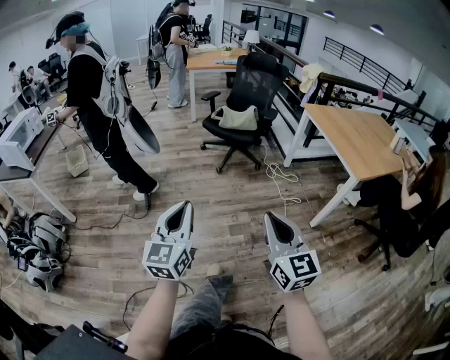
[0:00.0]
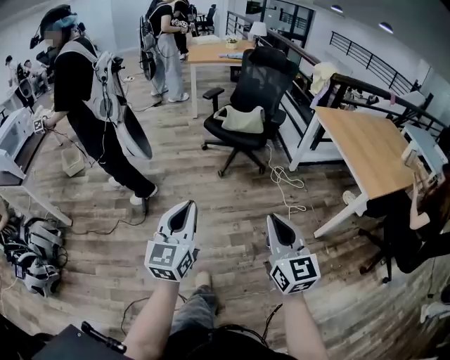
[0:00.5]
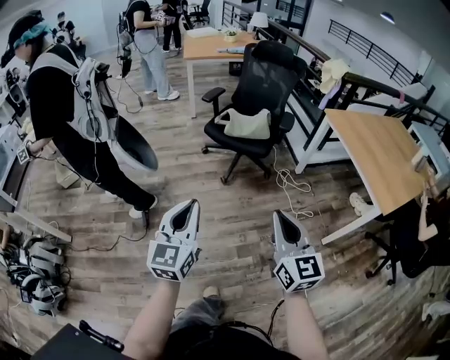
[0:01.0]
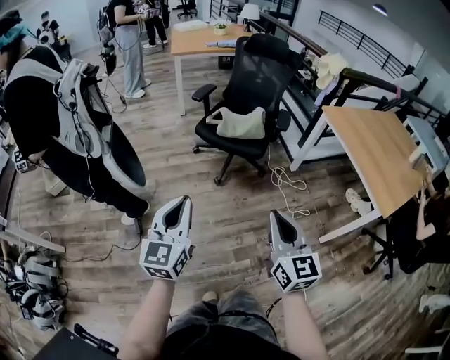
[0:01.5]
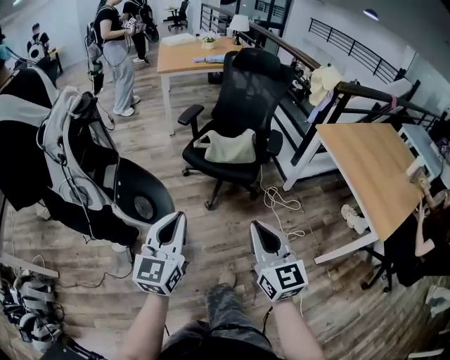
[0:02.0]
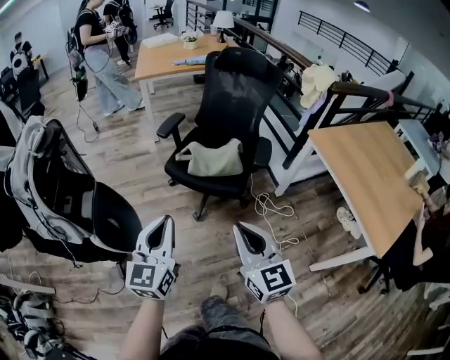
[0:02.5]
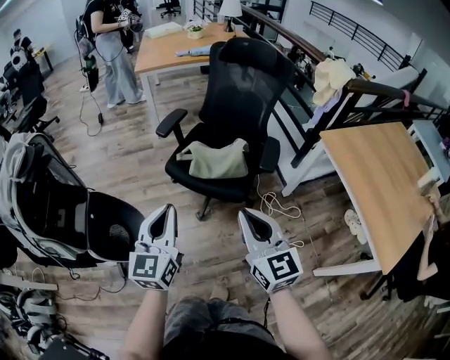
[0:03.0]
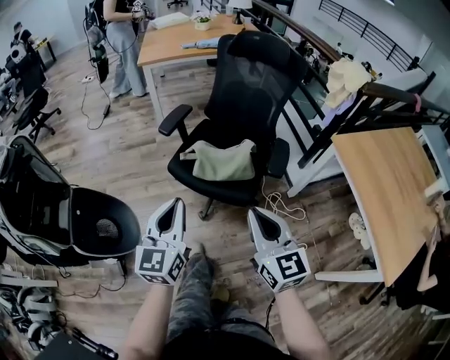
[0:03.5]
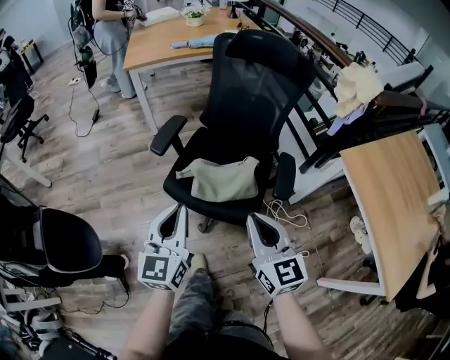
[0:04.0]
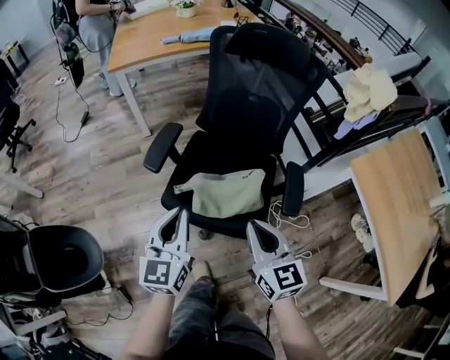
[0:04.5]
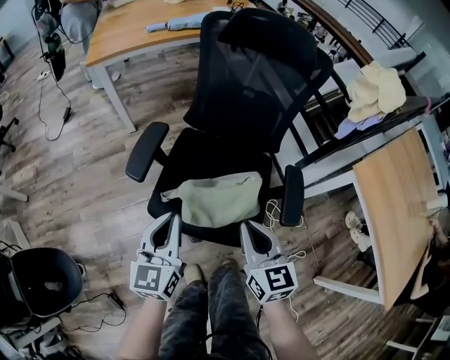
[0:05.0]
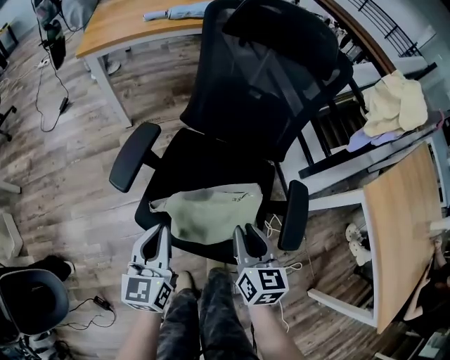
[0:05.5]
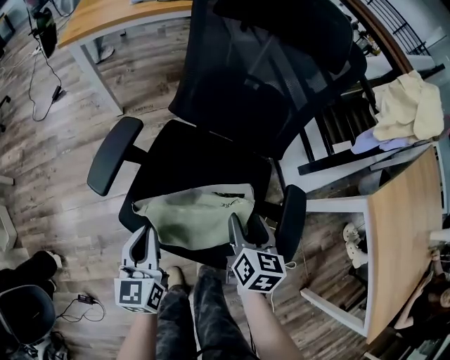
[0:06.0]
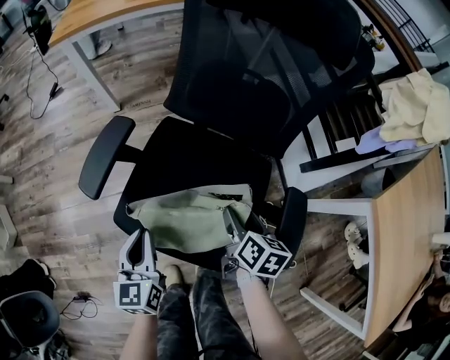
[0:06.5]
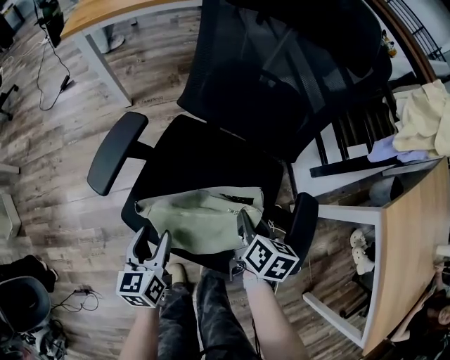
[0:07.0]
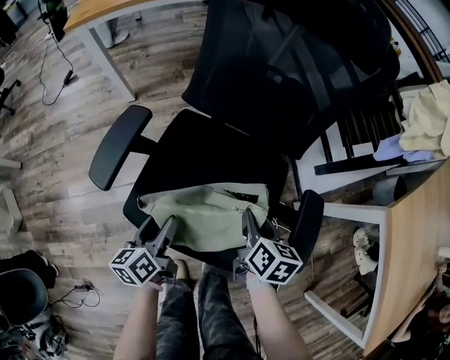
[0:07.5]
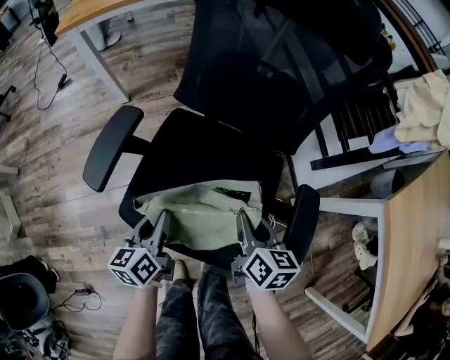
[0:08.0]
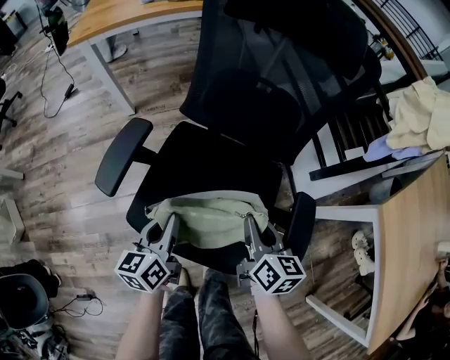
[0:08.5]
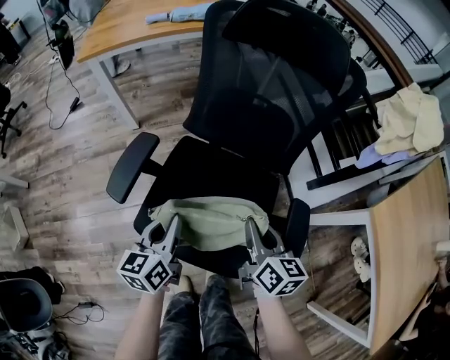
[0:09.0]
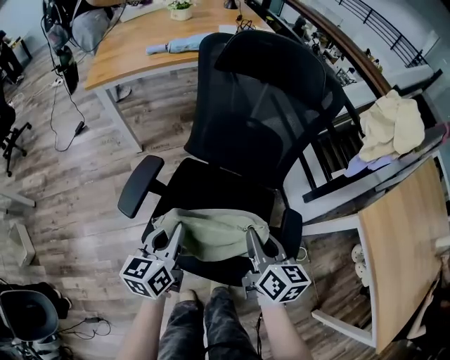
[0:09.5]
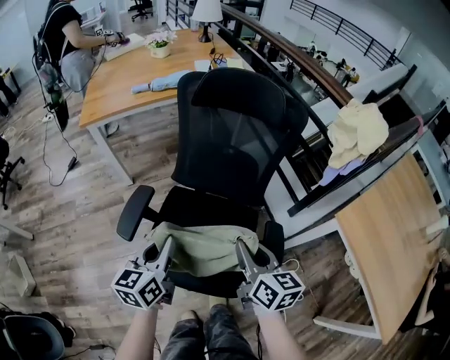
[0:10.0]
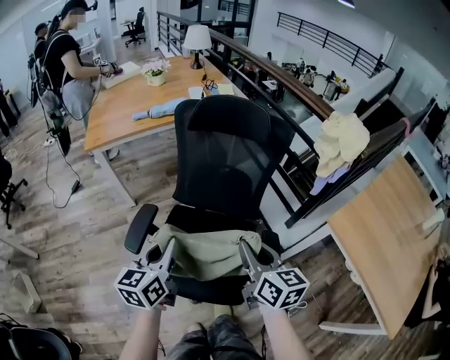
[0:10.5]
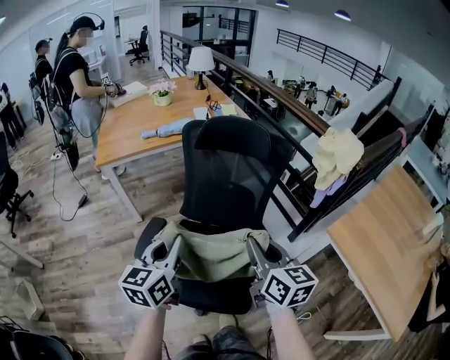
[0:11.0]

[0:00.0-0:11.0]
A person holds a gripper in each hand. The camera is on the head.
0:00.0 to 0:02.0: The two grippers travel together, forward, approximately 50 cm.
0:02.0 to 0:03.5: The grippers both shift forward by some 25 cm.
0:03.5 to 0:05.5: Both grippers move forward and downward, approximately 35 cm. The right gripper rotates about 30 degrees.
0:05.5 to 0:07.5: The right gripper goes approximately 15 cm downward, forward and to the right, turns by about 20 degrees, and opens, then closes once more. Meanwhile the left gripper moves downward, about 15 cm, changes its angle by approximately 30 degrees, and opens.
0:07.5 to 0:09.0: Both grippers move upward, approximately 10 cm. The left gripper turns by some 20 degrees, and closes up.
0:09.0 to 0:11.0: The grippers both shift upward by some 25 cm.

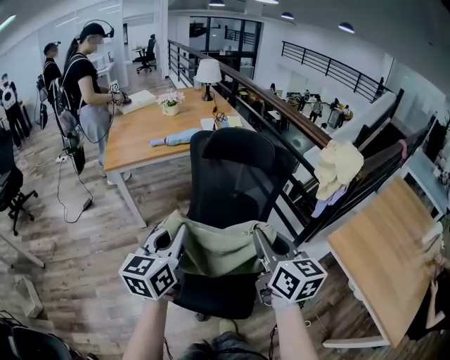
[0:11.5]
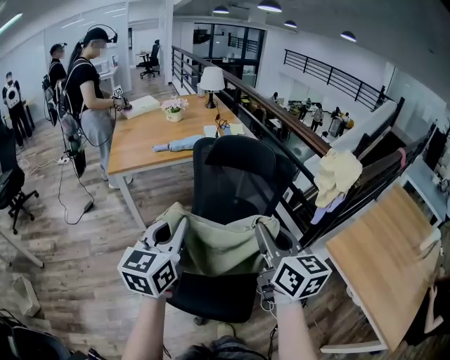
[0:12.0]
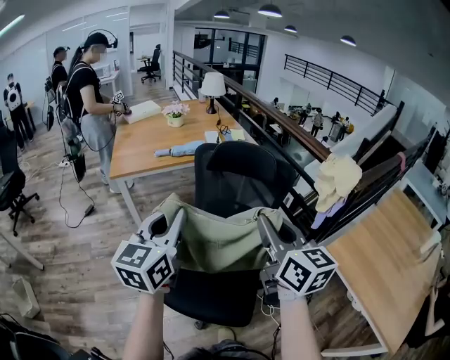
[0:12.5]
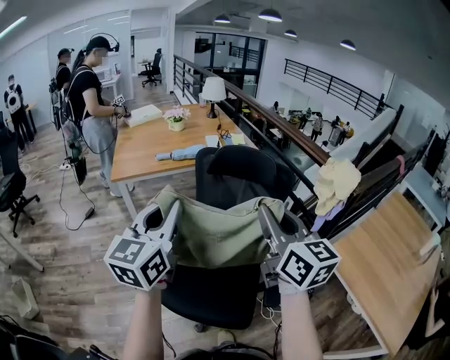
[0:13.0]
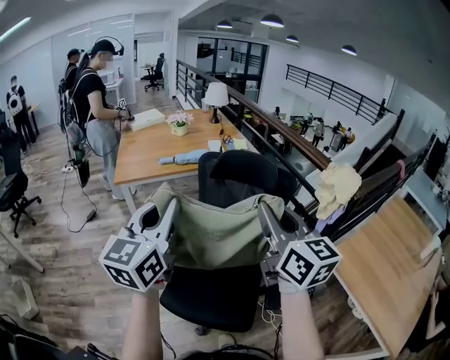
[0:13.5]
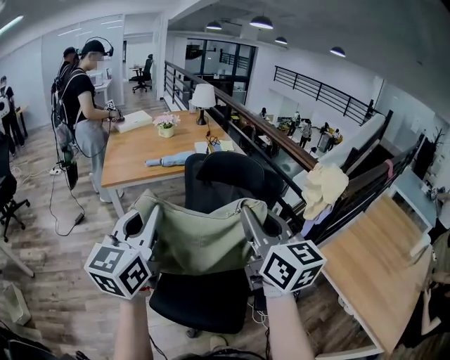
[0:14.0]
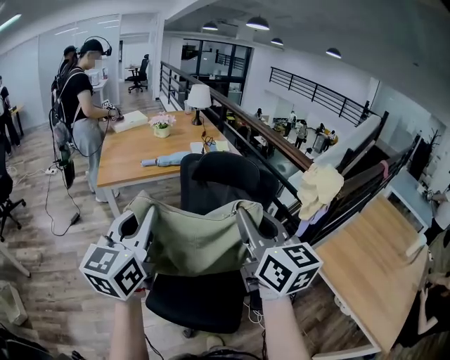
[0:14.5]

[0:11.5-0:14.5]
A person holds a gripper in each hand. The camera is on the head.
0:11.5 to 0:13.0: The grippers both shift upward by some 10 cm.
0:13.0 to 0:14.5: The grippers make only small movements.

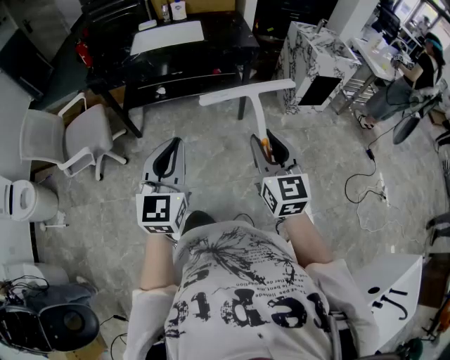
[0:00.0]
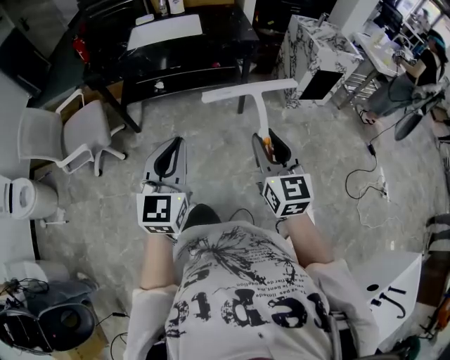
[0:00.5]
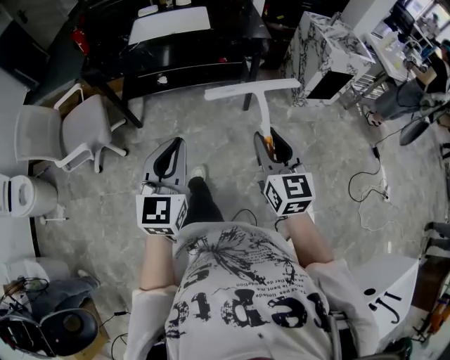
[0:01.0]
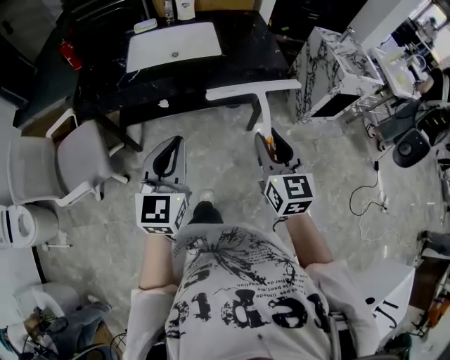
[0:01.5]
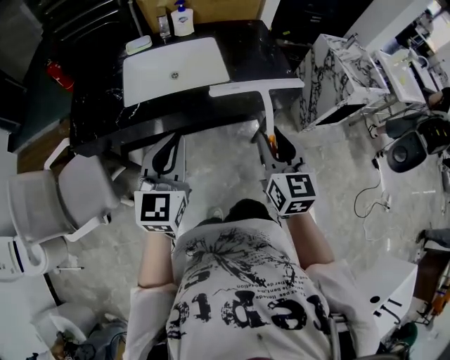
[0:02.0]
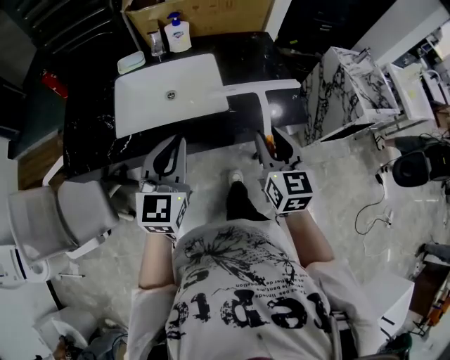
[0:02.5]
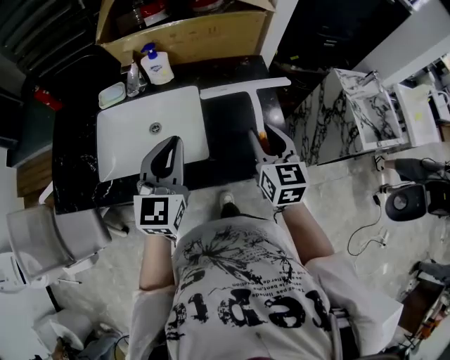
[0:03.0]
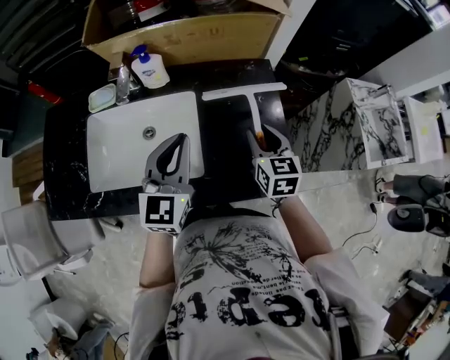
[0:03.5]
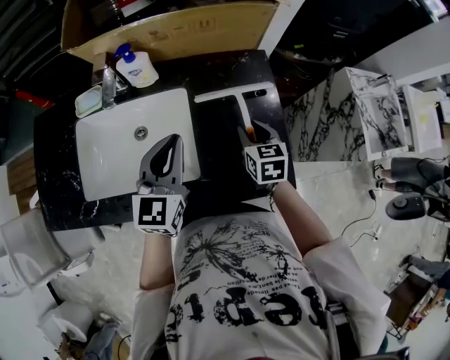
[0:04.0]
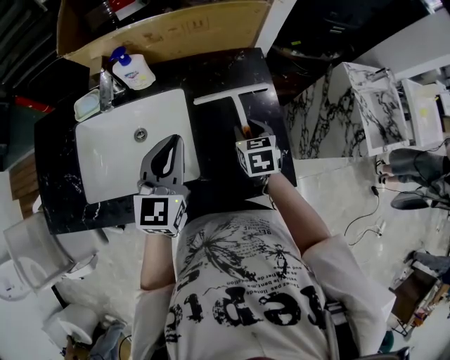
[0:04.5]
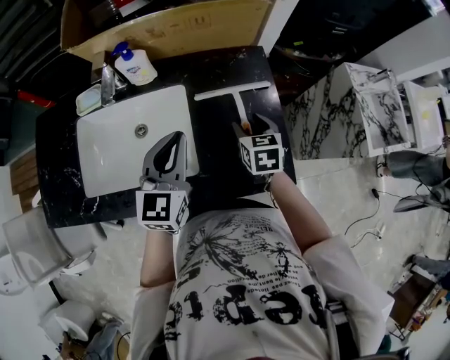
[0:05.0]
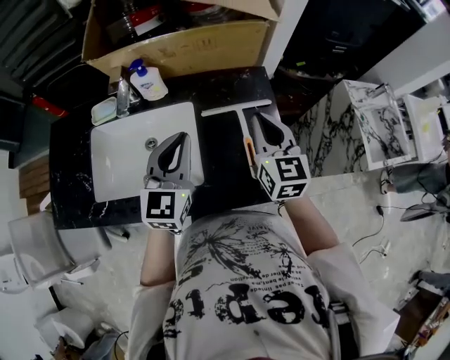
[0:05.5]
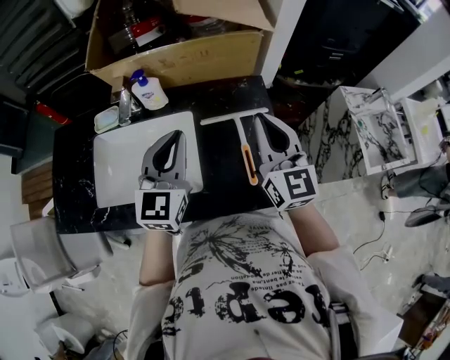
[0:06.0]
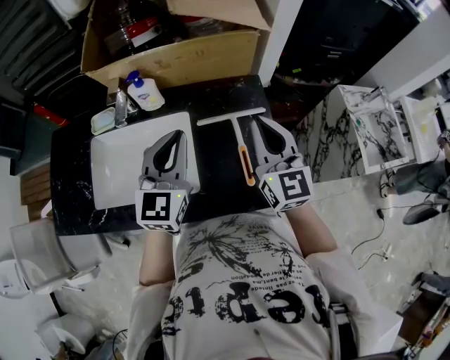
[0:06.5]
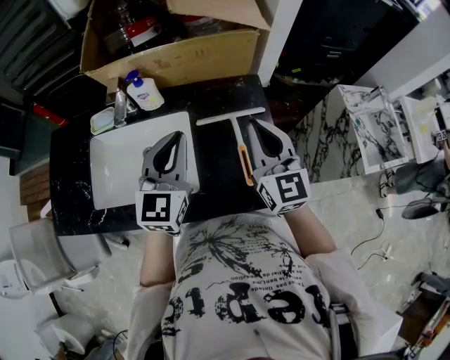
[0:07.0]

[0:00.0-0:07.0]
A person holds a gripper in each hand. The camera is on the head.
0:00.0 to 0:02.0: The two grippers travel together, forward, about 50 cm.
0:02.0 to 0:03.5: The two grippers travel together, forward, about 40 cm.
0:03.5 to 0:05.0: The right gripper goes approximately 5 cm downward, and opens its fingers.
0:05.0 to 0:07.0: The left gripper goes roughly 10 cm upward; the right gripper is displaced upward by approximately 20 cm, angles its fingers upward, by approximately 40 degrees, and closes.

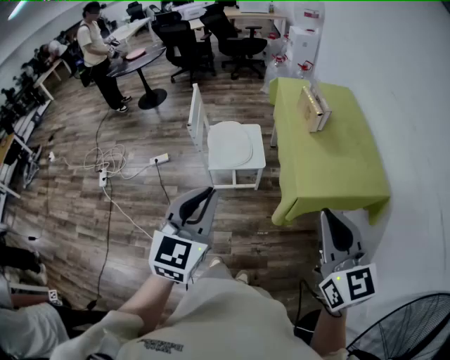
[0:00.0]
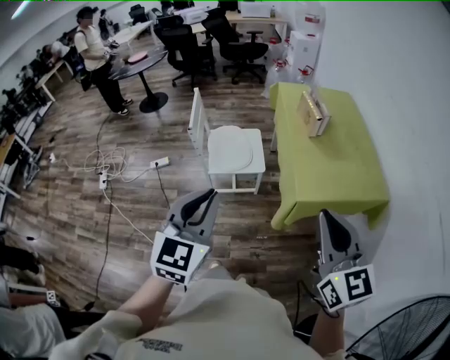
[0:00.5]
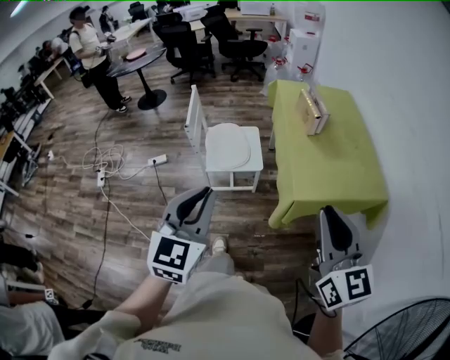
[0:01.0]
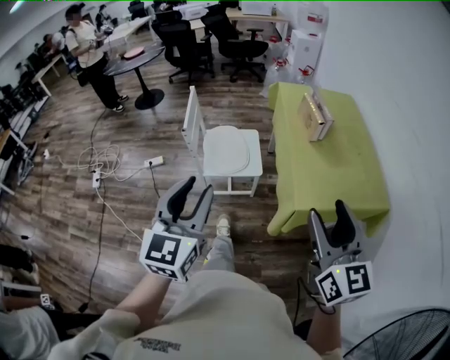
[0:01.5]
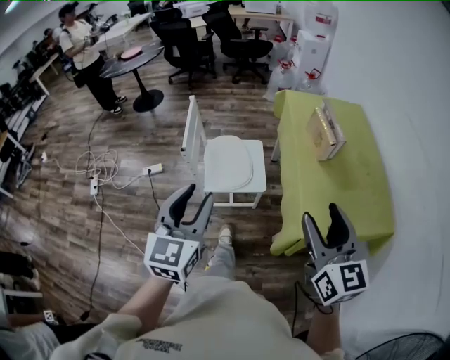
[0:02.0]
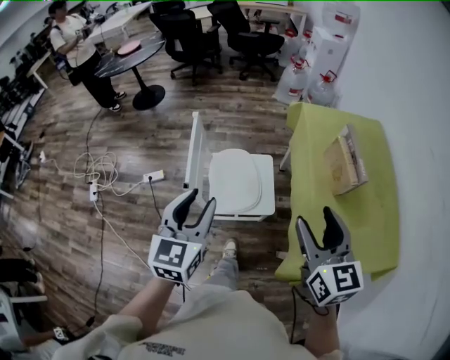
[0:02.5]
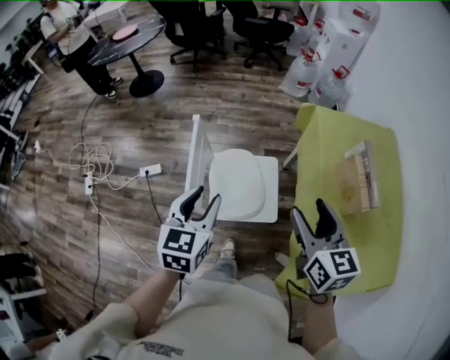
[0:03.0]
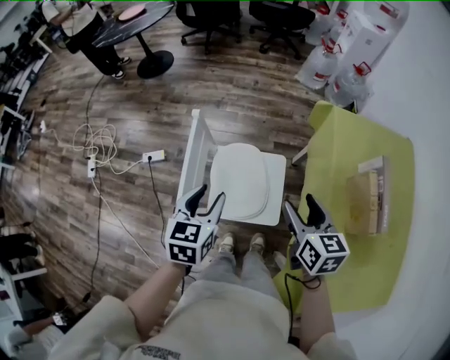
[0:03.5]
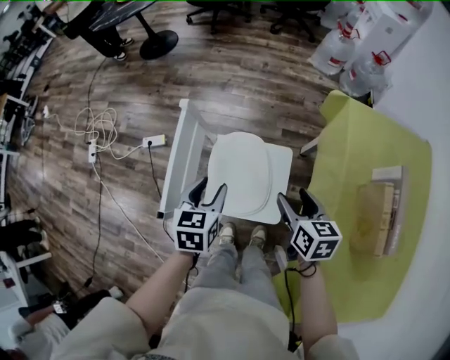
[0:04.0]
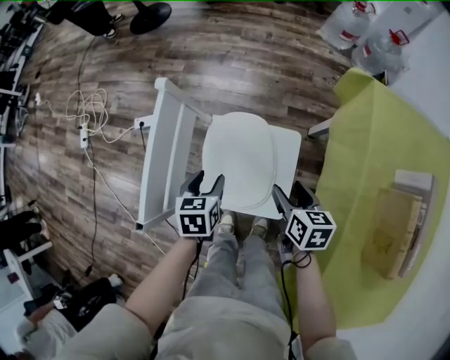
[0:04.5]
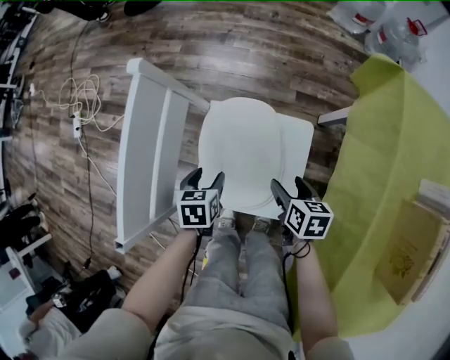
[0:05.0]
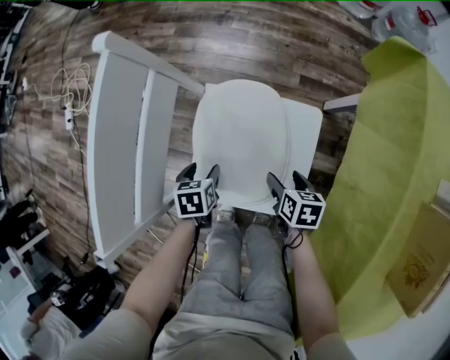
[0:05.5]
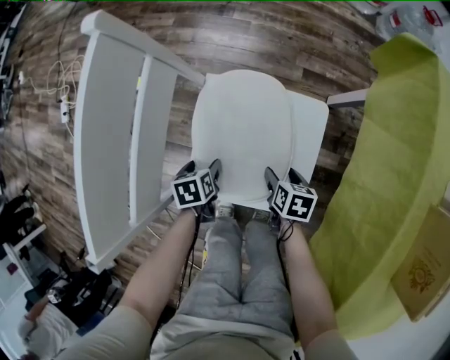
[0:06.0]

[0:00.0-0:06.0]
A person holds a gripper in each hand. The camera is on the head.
0:00.0 to 0:02.0: The grippers both shift forward by approximately 20 cm. The left gripper opens its fingers, while the right gripper opens up.
0:02.0 to 0:04.0: The two grippers travel together, forward, roughly 50 cm. The two grippers go some 30 cm downward. The right gripper angles its fingers downward, by approximately 30 degrees. Meanwhile the left gripper tips its fingers downward by roughly 30 degrees.
0:04.0 to 0:06.0: Both grippers travel together downward, roughly 50 cm. The left gripper rotates approximately 40 degrees, and opens its fingers. The right gripper turns by about 30 degrees.
